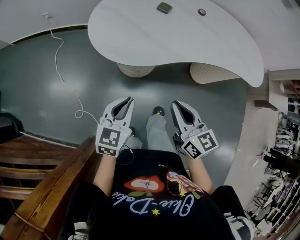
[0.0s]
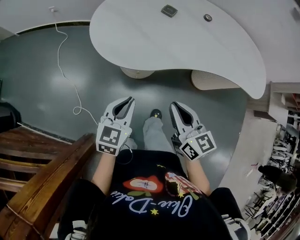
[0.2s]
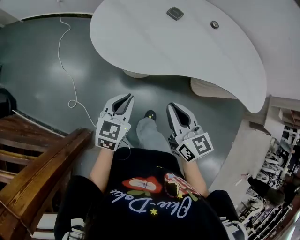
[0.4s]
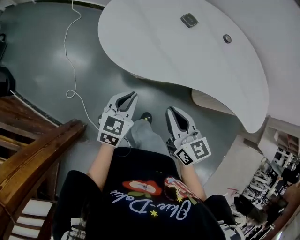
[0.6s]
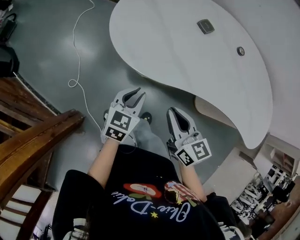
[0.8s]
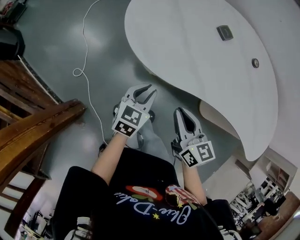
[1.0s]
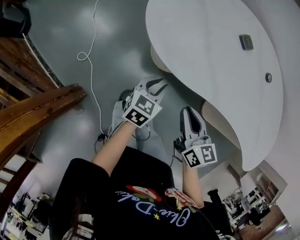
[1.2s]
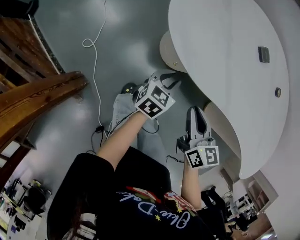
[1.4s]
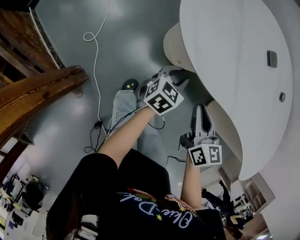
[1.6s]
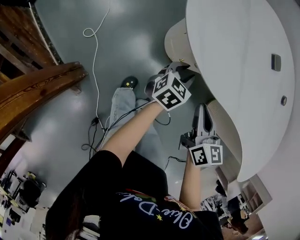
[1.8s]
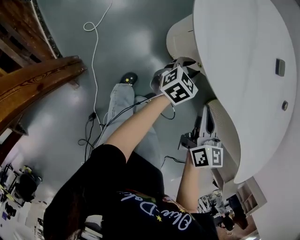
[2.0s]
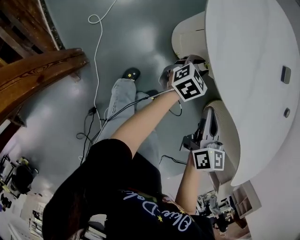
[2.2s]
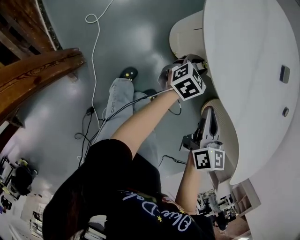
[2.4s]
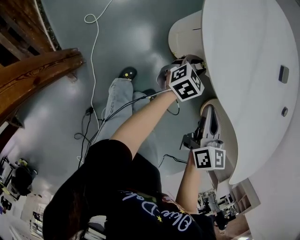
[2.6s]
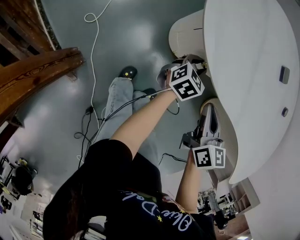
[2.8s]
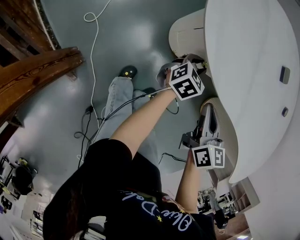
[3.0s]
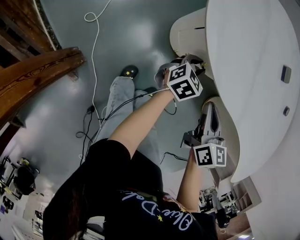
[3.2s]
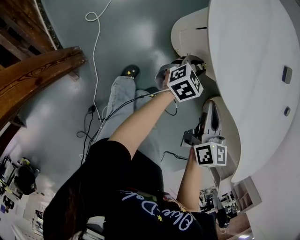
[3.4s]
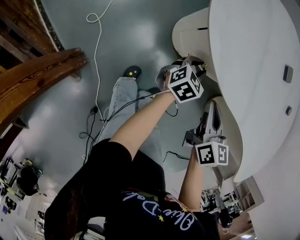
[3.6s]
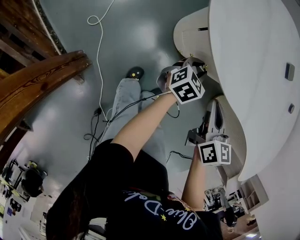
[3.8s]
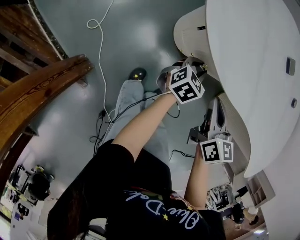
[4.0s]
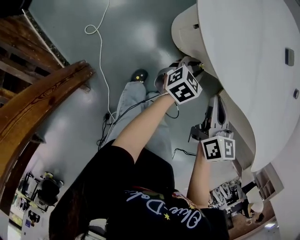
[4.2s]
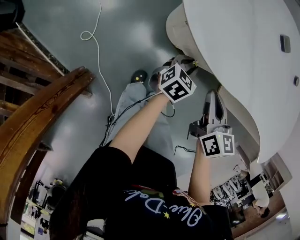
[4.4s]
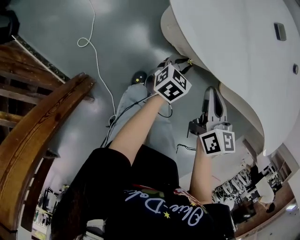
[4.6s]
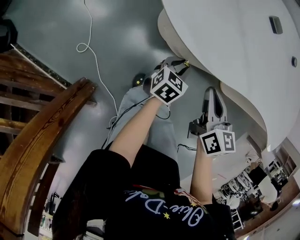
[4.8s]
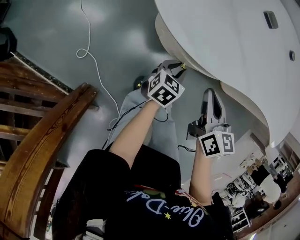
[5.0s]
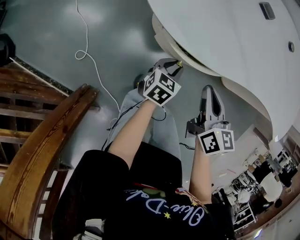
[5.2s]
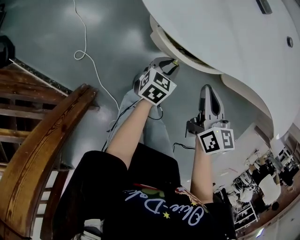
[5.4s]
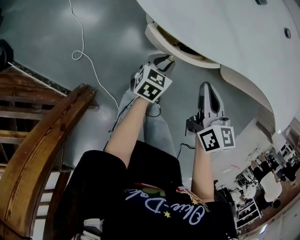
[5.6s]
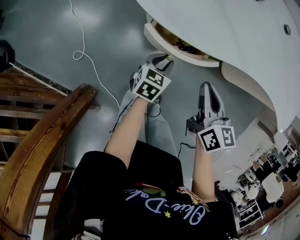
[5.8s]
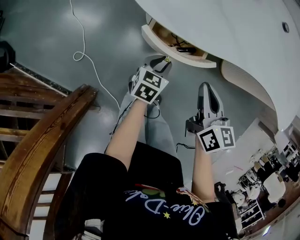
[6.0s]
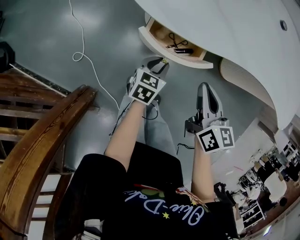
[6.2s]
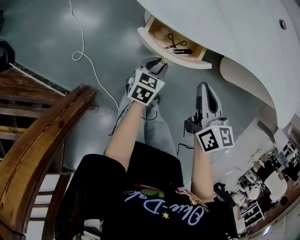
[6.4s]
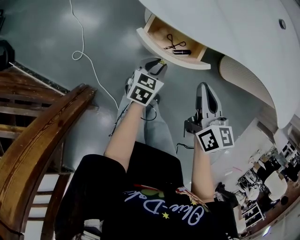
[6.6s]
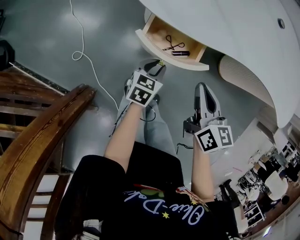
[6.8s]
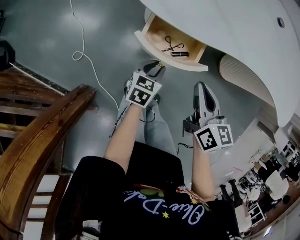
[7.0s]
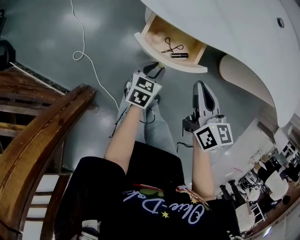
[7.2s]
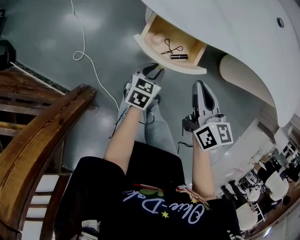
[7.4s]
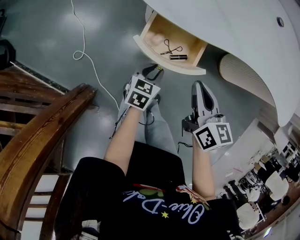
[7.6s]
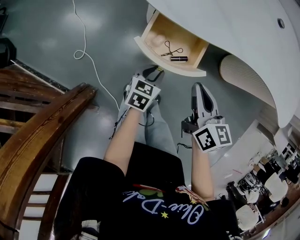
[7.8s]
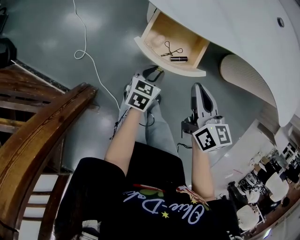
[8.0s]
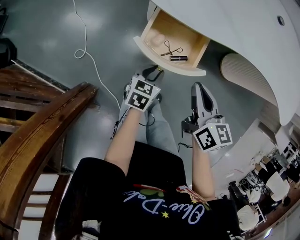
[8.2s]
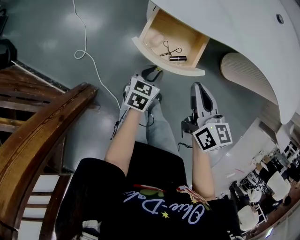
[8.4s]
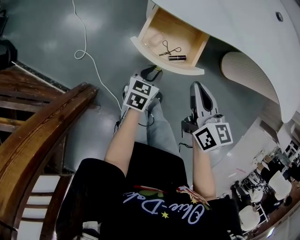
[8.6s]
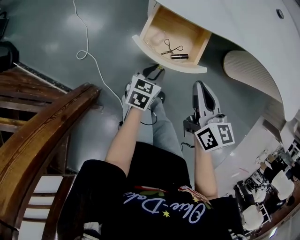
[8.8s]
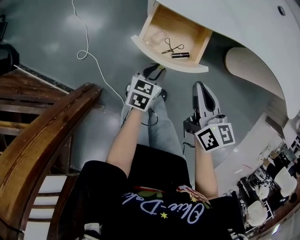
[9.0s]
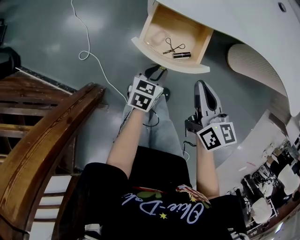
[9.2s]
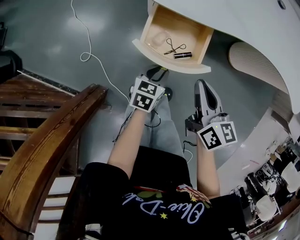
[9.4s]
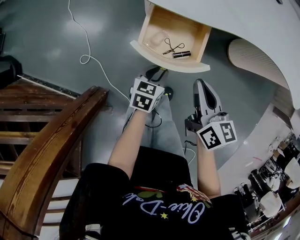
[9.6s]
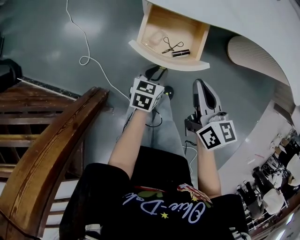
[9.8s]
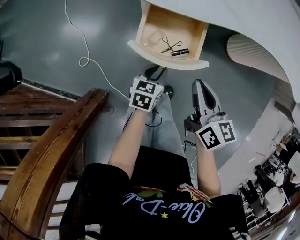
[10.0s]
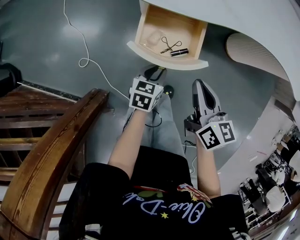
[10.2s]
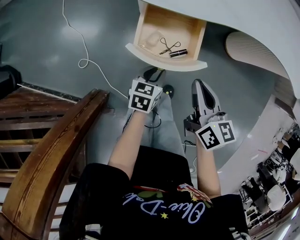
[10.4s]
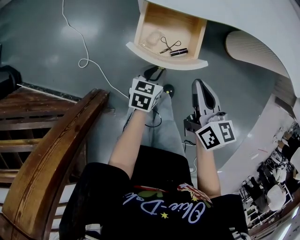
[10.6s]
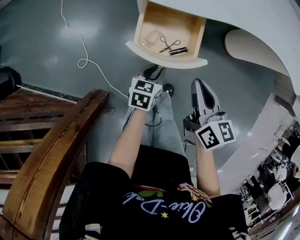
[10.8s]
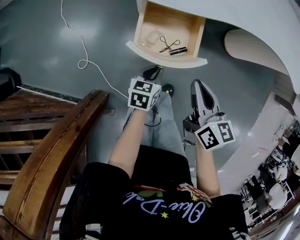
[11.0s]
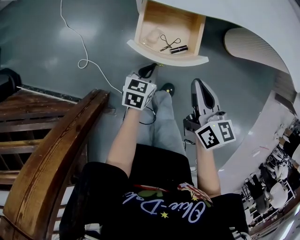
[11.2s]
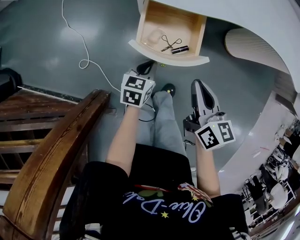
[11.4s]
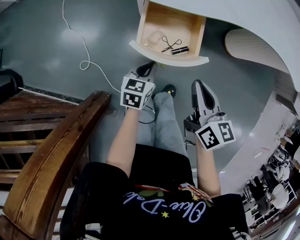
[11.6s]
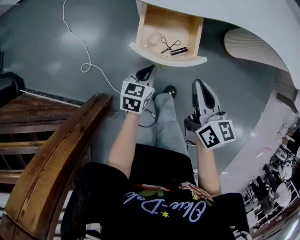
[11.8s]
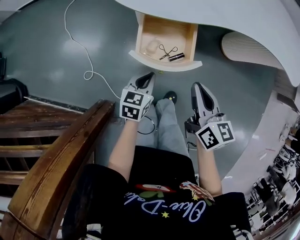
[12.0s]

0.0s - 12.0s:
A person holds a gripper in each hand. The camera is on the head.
0.0s - 1.6s: The two grippers go roughly 25 cm downward and forward. The right gripper swivels roughly 30 degrees. The left gripper turns by about 30 degrees.
1.6s - 3.0s: The left gripper heads downward and forward, covering roughly 10 cm.
3.0s - 4.4s: The left gripper heads backward, covering approximately 5 cm.
4.4s - 6.0s: The right gripper is displaced to the right by about 5 cm, while the left gripper moves backward, roughly 5 cm.
6.0s - 7.6s: The left gripper shifts some 5 cm backward.
7.6s - 9.0s: The right gripper shifts some 5 cm backward.
9.0s - 10.4s: The grippers make only small movements.
10.4s - 12.0s: The left gripper is displaced upward by about 5 cm.

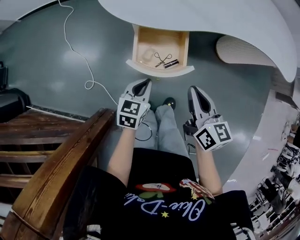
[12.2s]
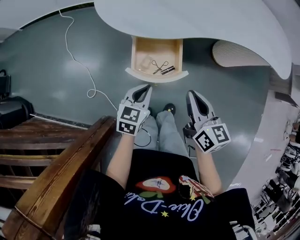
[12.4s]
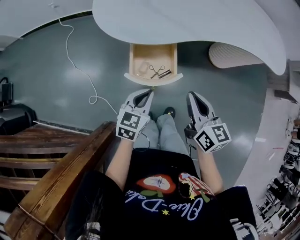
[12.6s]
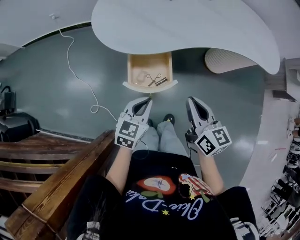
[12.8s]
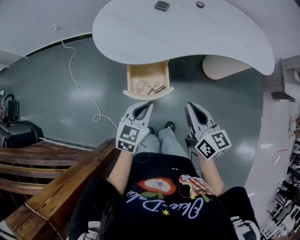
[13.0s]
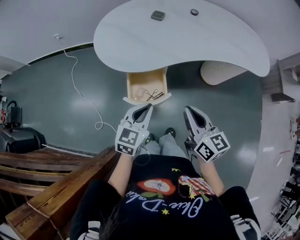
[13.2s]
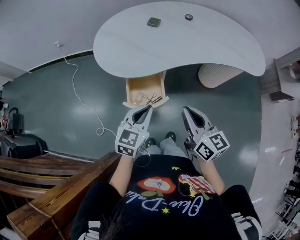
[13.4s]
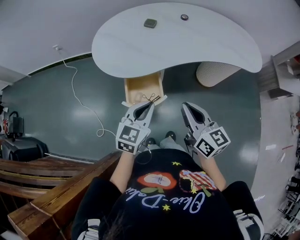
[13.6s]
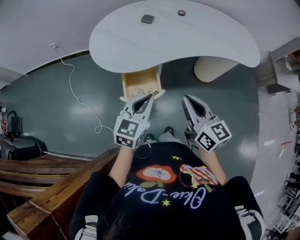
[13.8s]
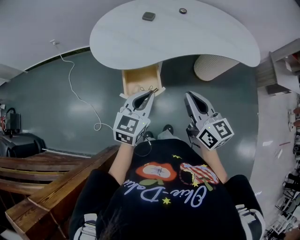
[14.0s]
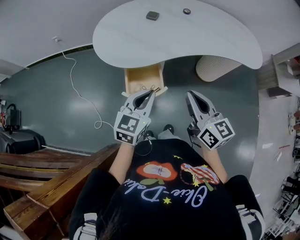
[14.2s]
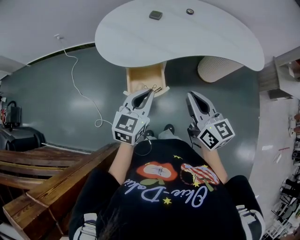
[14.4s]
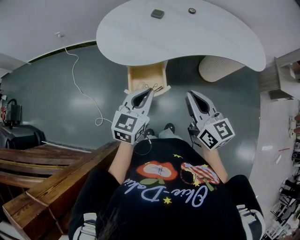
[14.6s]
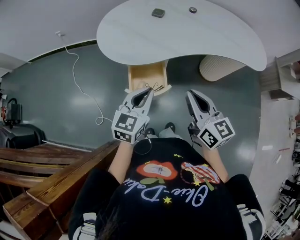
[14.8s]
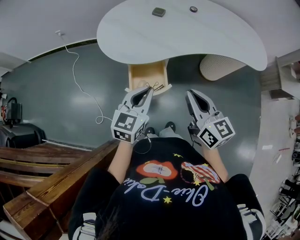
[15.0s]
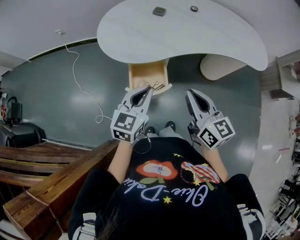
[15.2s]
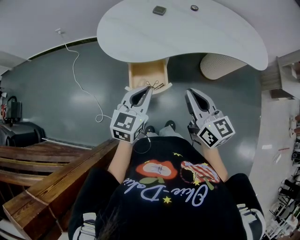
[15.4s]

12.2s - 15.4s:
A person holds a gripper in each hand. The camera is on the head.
12.2s - 13.8s: The right gripper moves upward and to the right, some 20 cm, while the left gripper is displaced upward by roughly 25 cm, and rotates approximately 30 degrees.
13.8s - 15.4s: The grippers make only small movements.

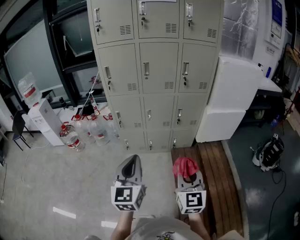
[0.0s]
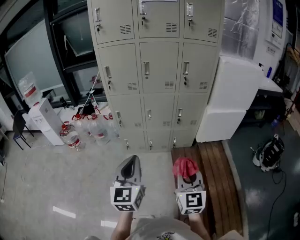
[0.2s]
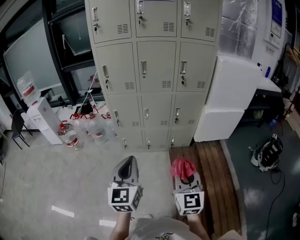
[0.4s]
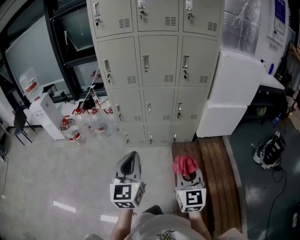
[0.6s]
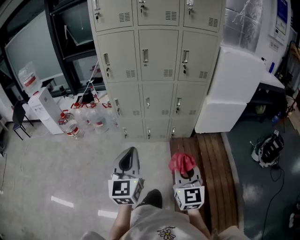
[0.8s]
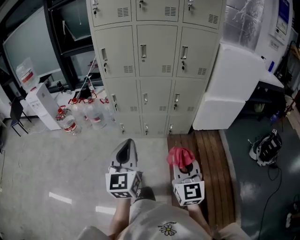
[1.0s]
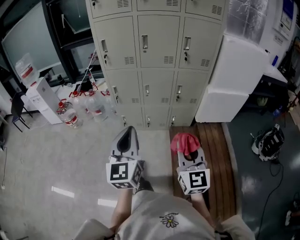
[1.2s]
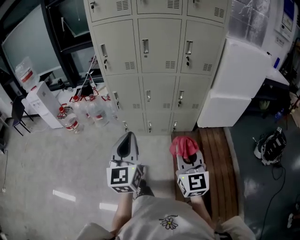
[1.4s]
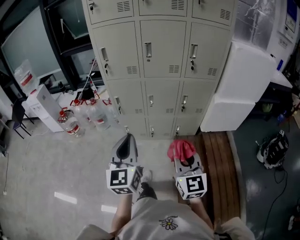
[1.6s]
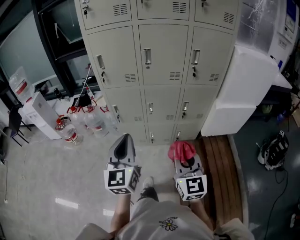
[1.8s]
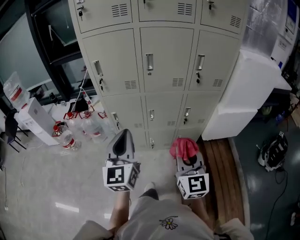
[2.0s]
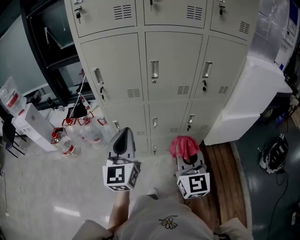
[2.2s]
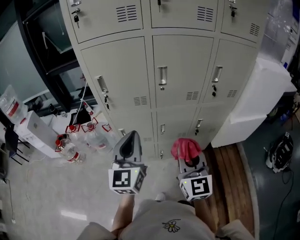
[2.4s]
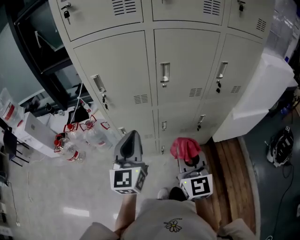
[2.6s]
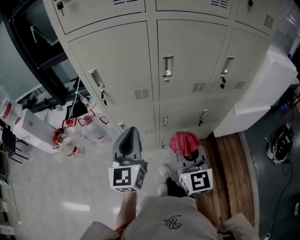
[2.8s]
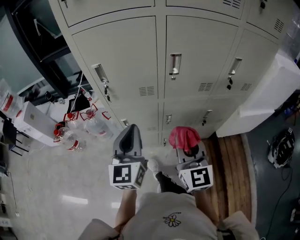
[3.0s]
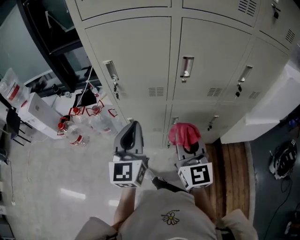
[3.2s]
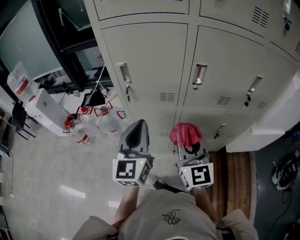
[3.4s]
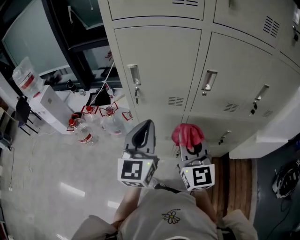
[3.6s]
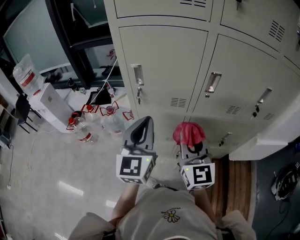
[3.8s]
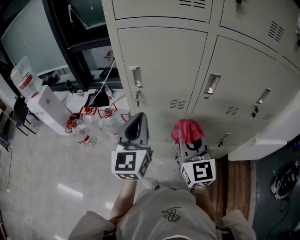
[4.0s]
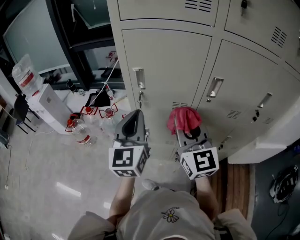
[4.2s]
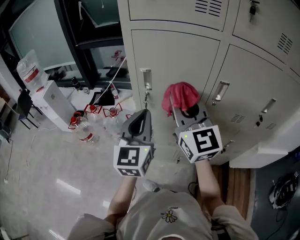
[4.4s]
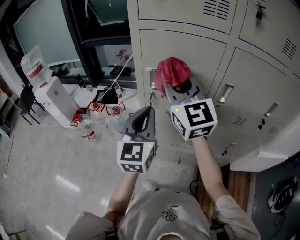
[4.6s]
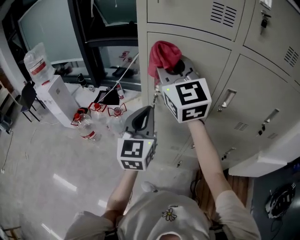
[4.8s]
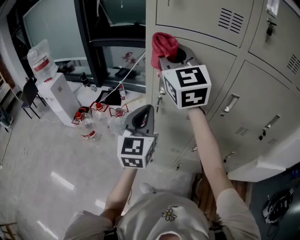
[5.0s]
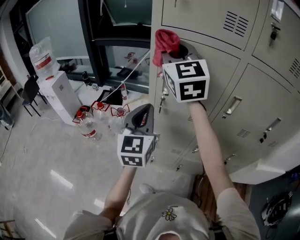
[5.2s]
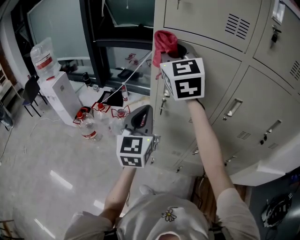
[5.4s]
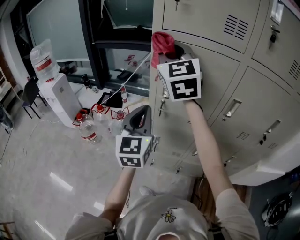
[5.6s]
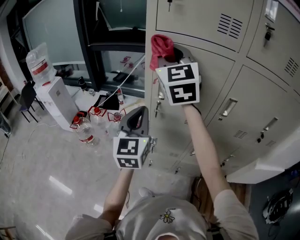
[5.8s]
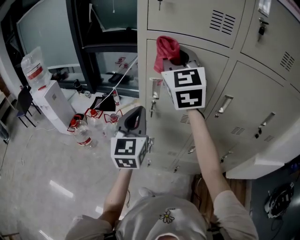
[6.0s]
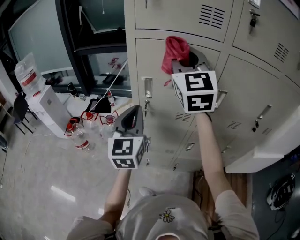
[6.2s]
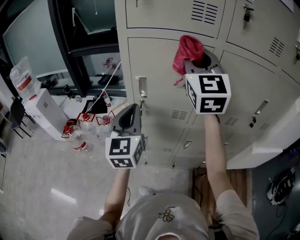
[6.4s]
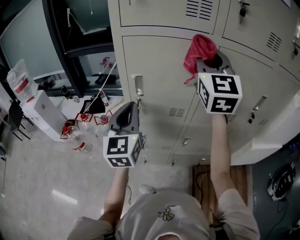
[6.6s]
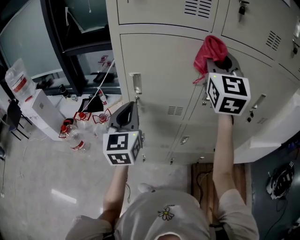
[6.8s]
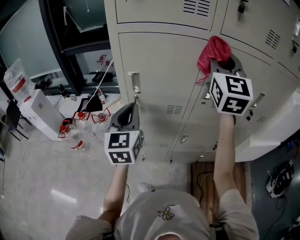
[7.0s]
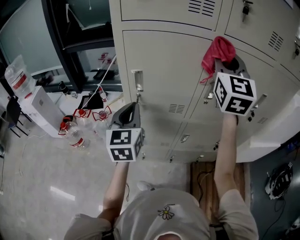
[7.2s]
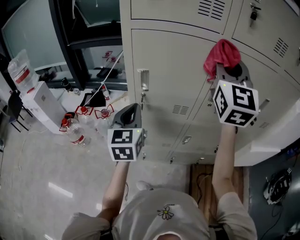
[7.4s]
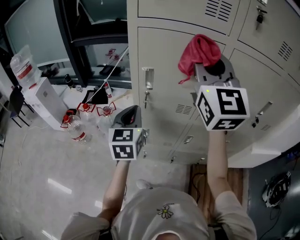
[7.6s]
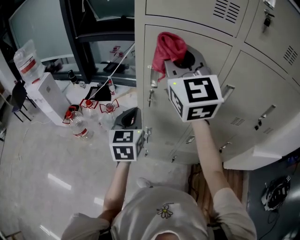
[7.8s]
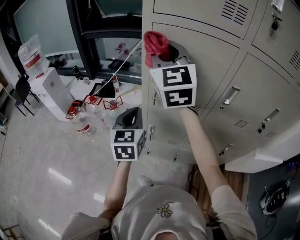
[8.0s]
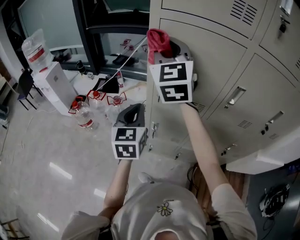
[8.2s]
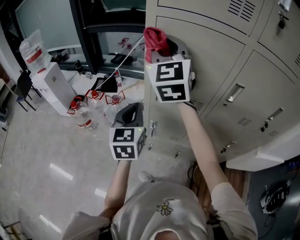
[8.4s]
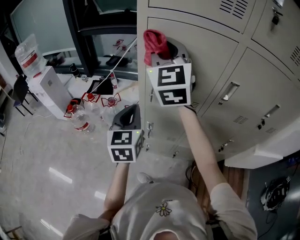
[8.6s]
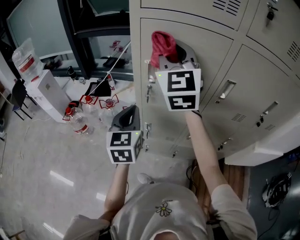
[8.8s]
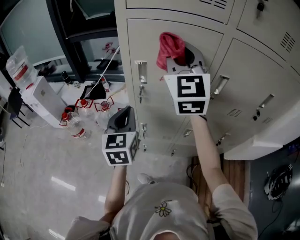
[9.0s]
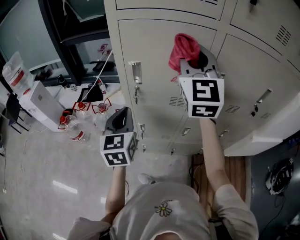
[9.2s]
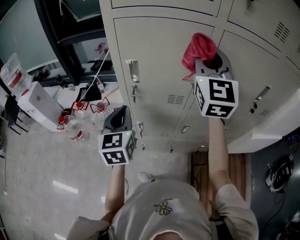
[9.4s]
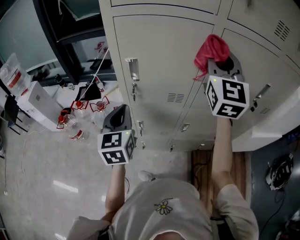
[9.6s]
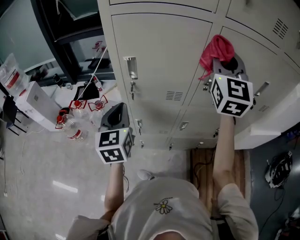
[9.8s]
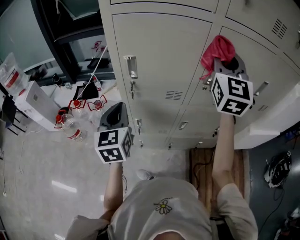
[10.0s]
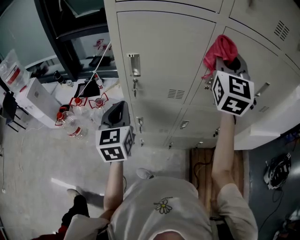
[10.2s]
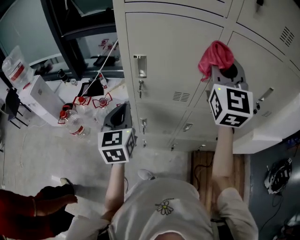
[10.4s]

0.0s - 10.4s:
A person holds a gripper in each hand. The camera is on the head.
0.0s - 1.4s: The right gripper moves roughly 5 cm.
1.4s - 3.0s: The two grippers travel together, forward, about 40 cm.
3.0s - 4.4s: The left gripper is displaced to the left, forward and upward by approximately 10 cm. Meanwhile the right gripper goes approximately 25 cm forward, upward and to the left, and changes its angle by roughly 20 degrees.
4.4s - 6.0s: The left gripper moves some 5 cm. The right gripper heads upward and forward, covering about 15 cm.
6.0s - 7.4s: The right gripper travels to the right by about 20 cm.
7.4s - 9.0s: The right gripper is displaced to the left, forward and downward by roughly 15 cm.
9.0s - 10.4s: The right gripper travels to the right by approximately 15 cm.
